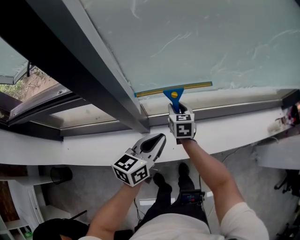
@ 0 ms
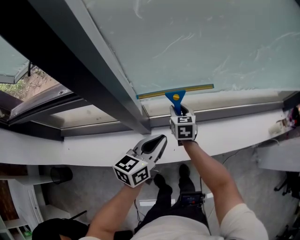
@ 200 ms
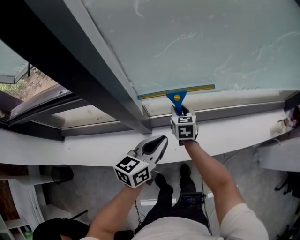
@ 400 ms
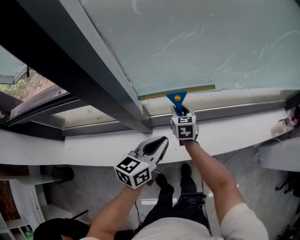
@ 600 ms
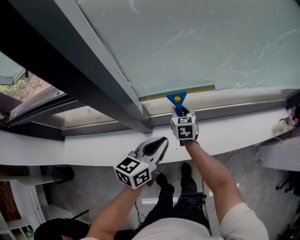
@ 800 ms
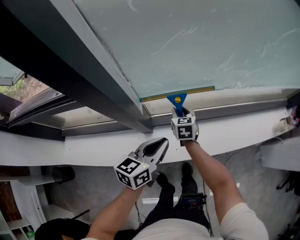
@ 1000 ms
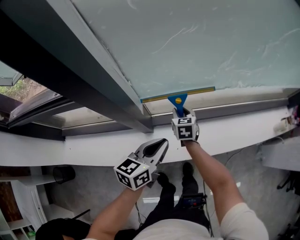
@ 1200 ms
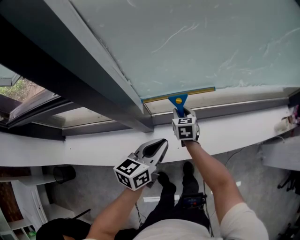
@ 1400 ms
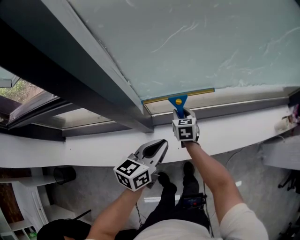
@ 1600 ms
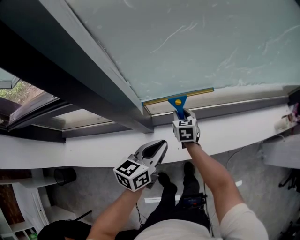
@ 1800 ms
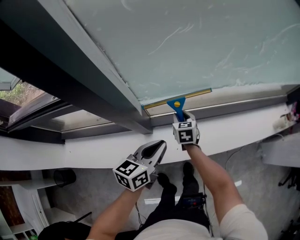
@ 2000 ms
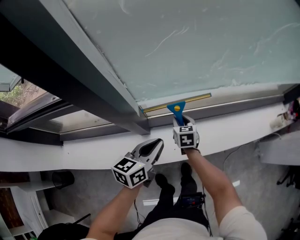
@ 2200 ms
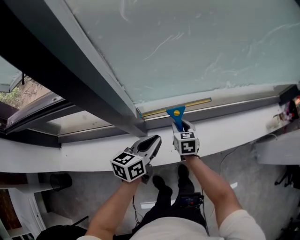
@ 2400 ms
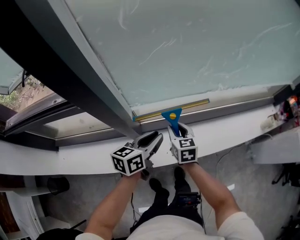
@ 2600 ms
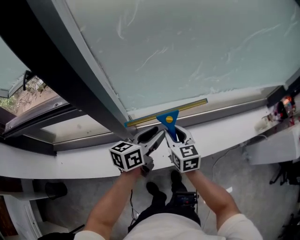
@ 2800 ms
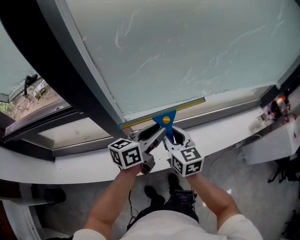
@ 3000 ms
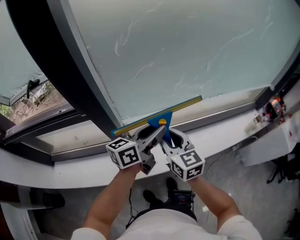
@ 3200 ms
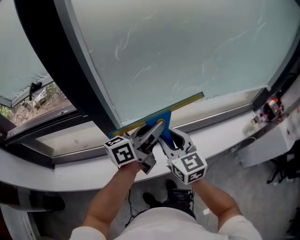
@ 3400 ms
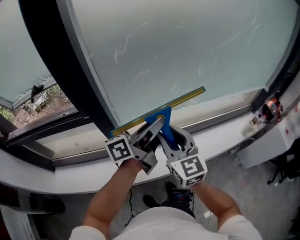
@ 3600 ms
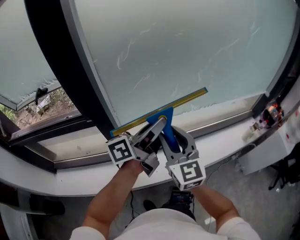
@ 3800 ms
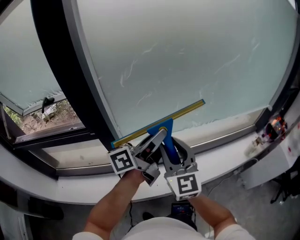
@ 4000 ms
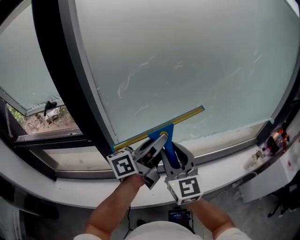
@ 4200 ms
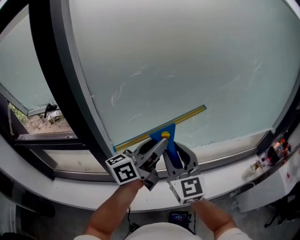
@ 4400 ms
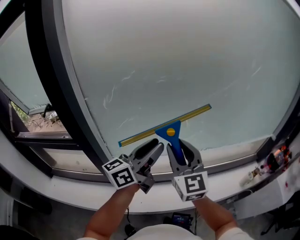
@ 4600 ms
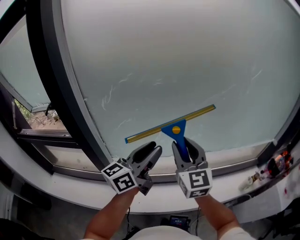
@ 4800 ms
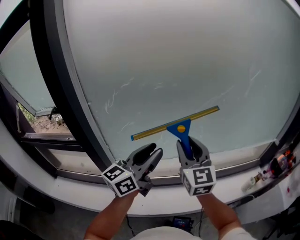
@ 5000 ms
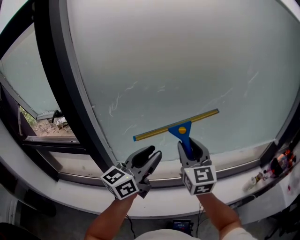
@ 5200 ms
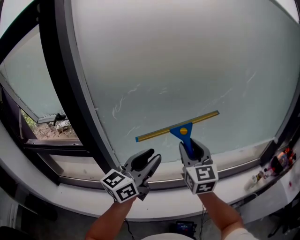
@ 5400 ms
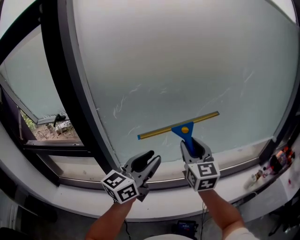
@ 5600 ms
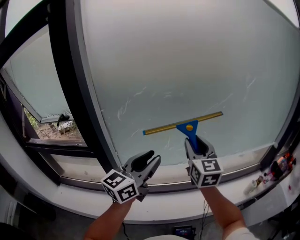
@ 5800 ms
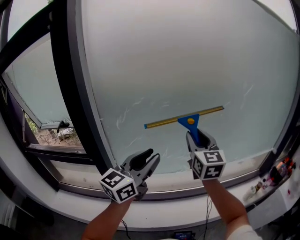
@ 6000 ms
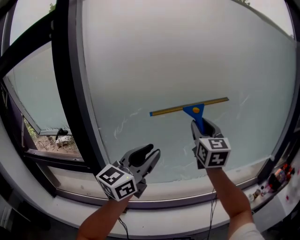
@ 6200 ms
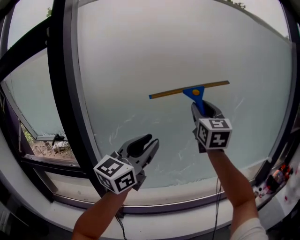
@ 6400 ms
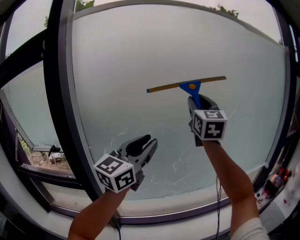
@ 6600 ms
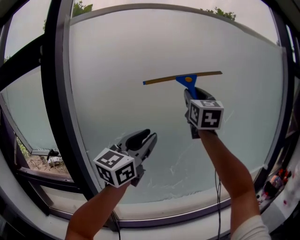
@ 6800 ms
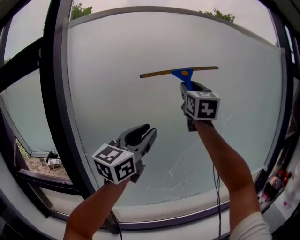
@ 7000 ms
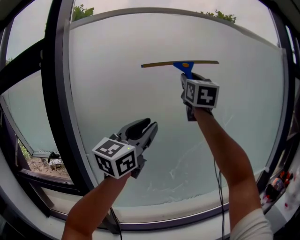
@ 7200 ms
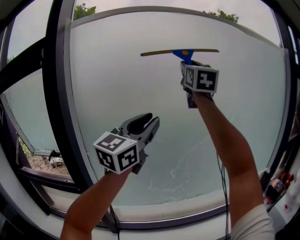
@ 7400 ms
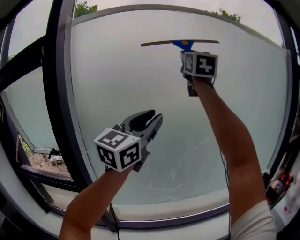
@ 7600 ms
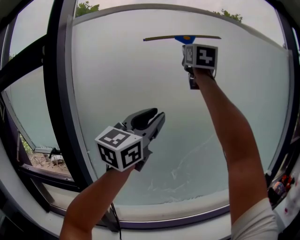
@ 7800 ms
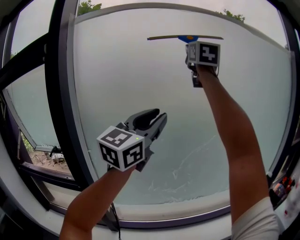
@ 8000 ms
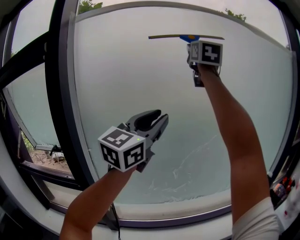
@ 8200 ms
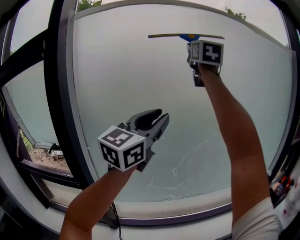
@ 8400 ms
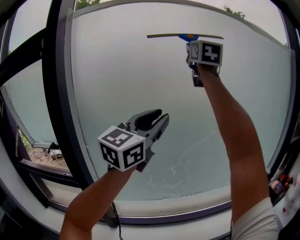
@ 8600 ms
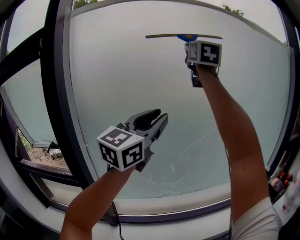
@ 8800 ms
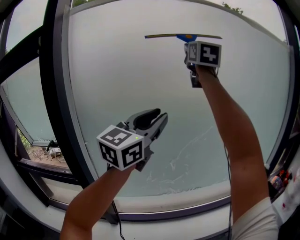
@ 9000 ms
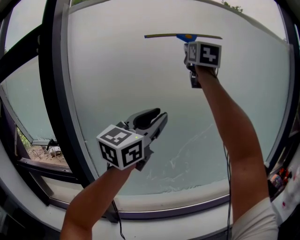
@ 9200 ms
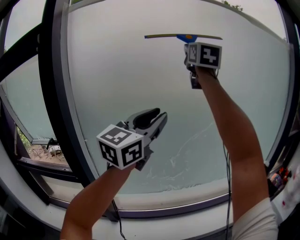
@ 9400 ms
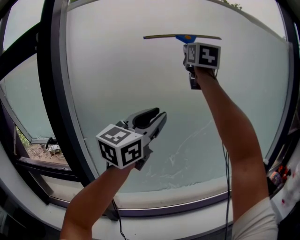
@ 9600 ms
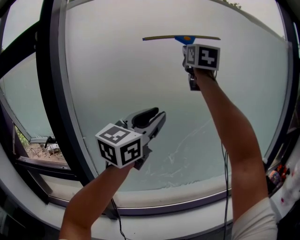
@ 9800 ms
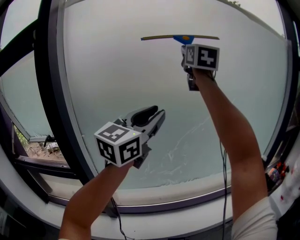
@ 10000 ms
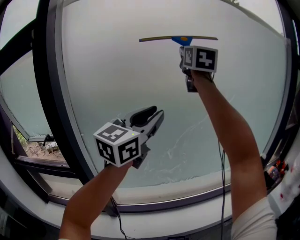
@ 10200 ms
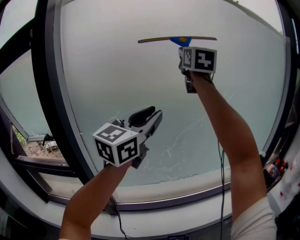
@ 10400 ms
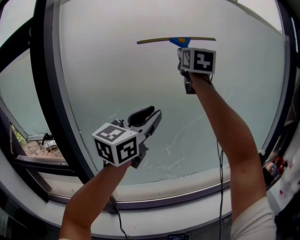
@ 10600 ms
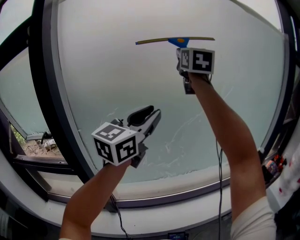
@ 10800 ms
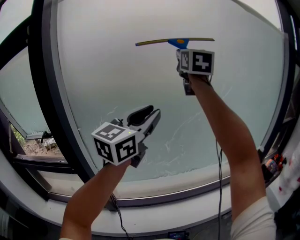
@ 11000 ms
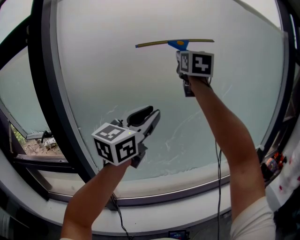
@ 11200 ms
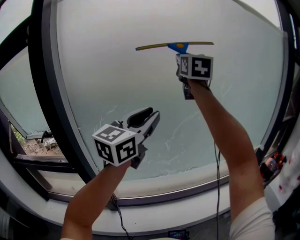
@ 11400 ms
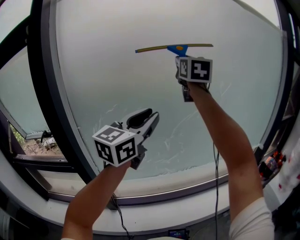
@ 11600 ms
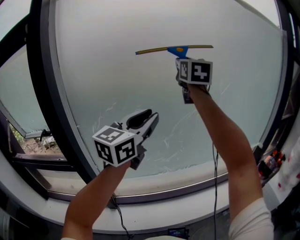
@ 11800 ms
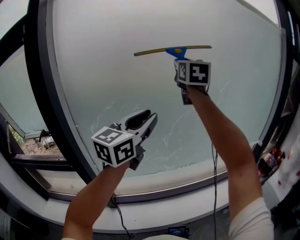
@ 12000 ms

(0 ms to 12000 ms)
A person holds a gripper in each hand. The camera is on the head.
0 ms - 1600 ms: The right gripper shifts about 10 cm downward.
1600 ms - 3000 ms: The left gripper travels upward and to the right by about 15 cm, and opens its fingers, while the right gripper is displaced upward and backward by roughly 30 cm, and turns by about 20 degrees.
3000 ms - 4400 ms: Both grippers travel together upward and to the right, approximately 25 cm. The left gripper rotates about 30 degrees. Meanwhile the right gripper swivels some 30 degrees.
4400 ms - 6000 ms: The left gripper heads upward, covering approximately 5 cm, and changes its angle by some 30 degrees. Meanwhile the right gripper heads to the right, upward and forward, covering some 20 cm.
6000 ms - 7600 ms: The right gripper is displaced upward by roughly 40 cm, and swivels about 20 degrees, while the left gripper is displaced upward by about 25 cm, and turns by roughly 20 degrees.
7600 ms - 9000 ms: There are only small adjustments of the grippers.
9000 ms - 10400 ms: The right gripper moves downward, some 10 cm.
10400 ms - 12000 ms: The right gripper moves downward, some 10 cm, while the left gripper heads downward, covering roughly 5 cm.

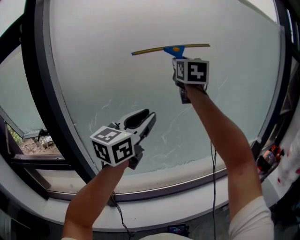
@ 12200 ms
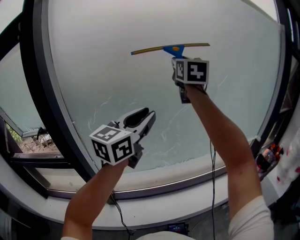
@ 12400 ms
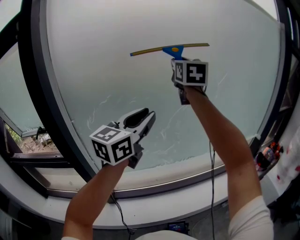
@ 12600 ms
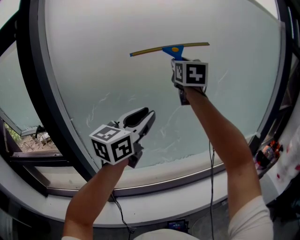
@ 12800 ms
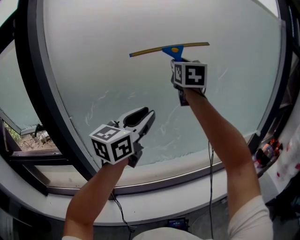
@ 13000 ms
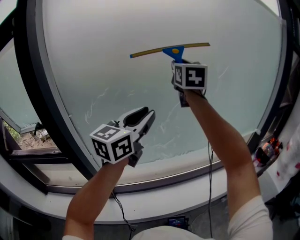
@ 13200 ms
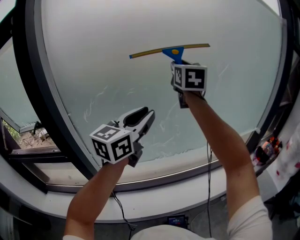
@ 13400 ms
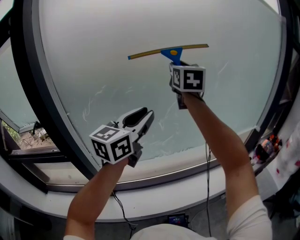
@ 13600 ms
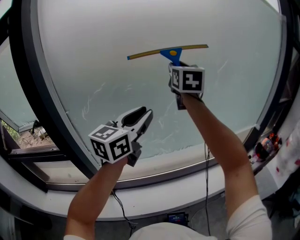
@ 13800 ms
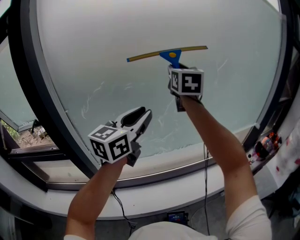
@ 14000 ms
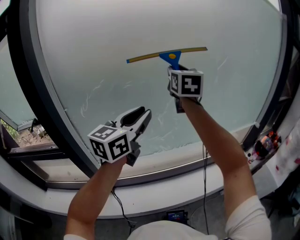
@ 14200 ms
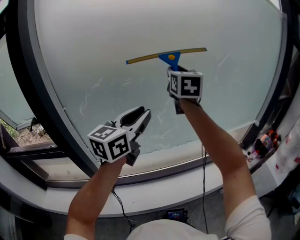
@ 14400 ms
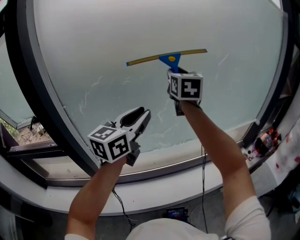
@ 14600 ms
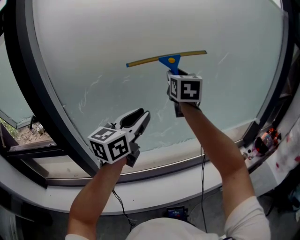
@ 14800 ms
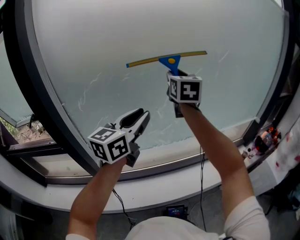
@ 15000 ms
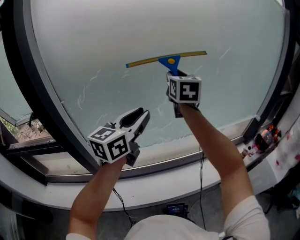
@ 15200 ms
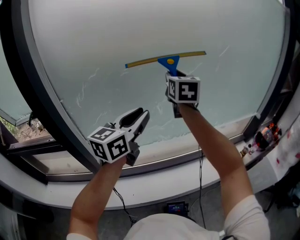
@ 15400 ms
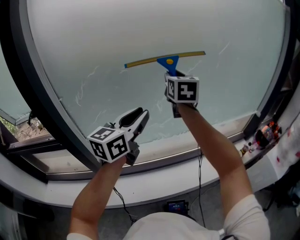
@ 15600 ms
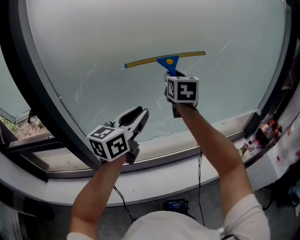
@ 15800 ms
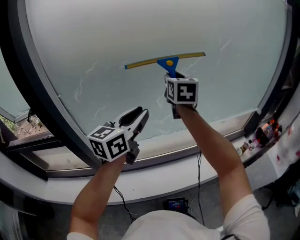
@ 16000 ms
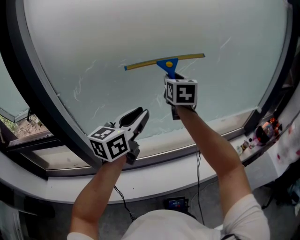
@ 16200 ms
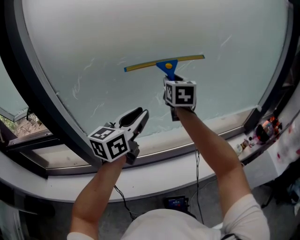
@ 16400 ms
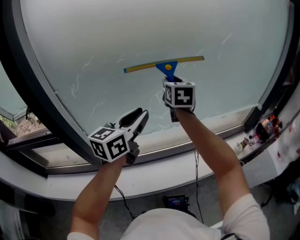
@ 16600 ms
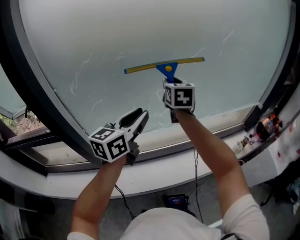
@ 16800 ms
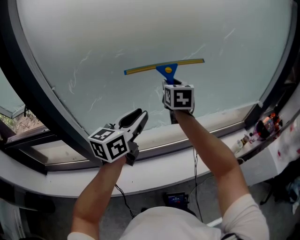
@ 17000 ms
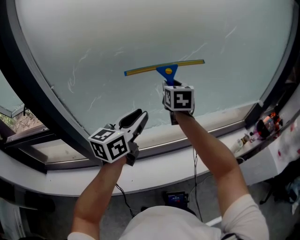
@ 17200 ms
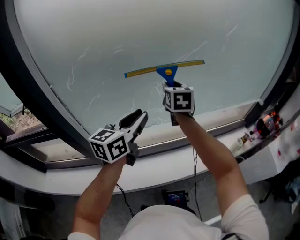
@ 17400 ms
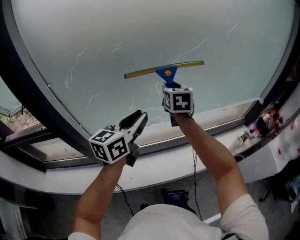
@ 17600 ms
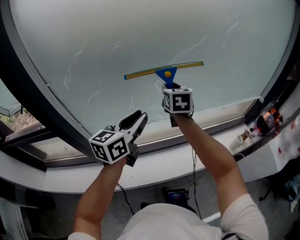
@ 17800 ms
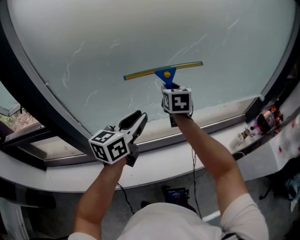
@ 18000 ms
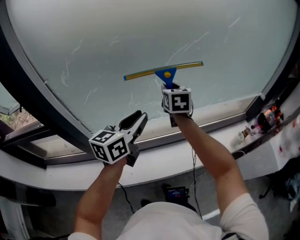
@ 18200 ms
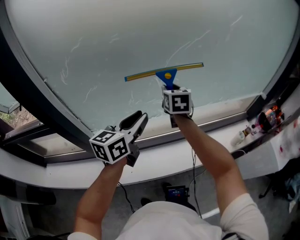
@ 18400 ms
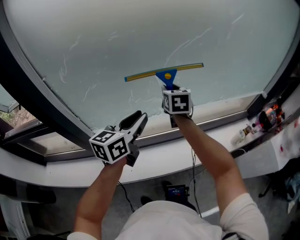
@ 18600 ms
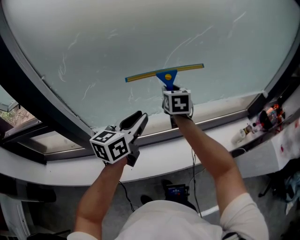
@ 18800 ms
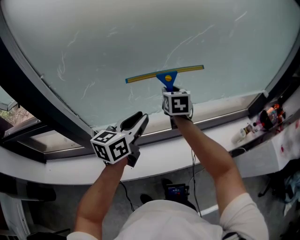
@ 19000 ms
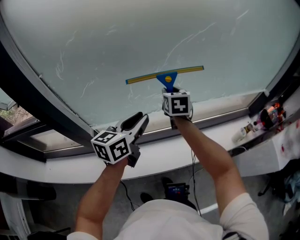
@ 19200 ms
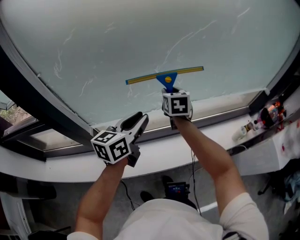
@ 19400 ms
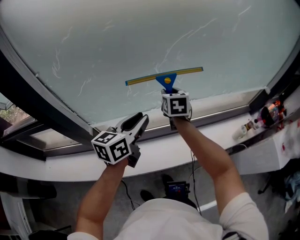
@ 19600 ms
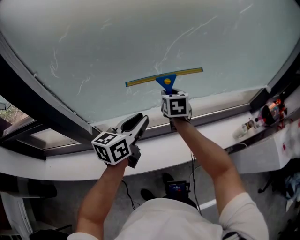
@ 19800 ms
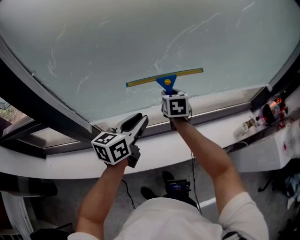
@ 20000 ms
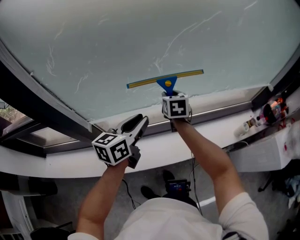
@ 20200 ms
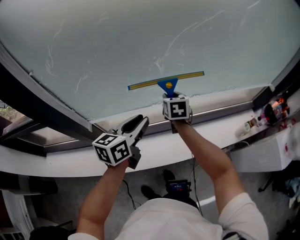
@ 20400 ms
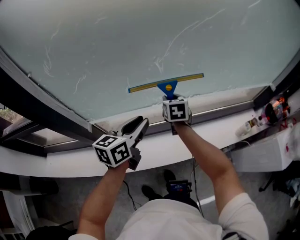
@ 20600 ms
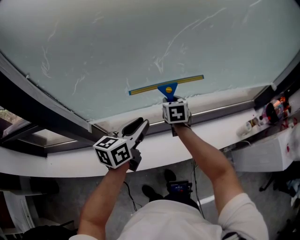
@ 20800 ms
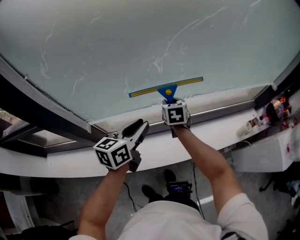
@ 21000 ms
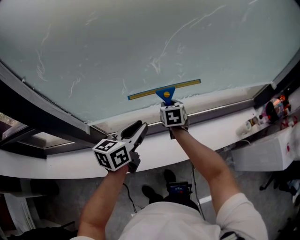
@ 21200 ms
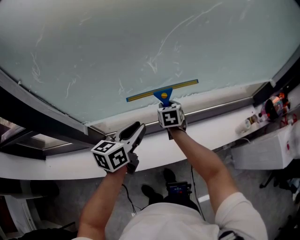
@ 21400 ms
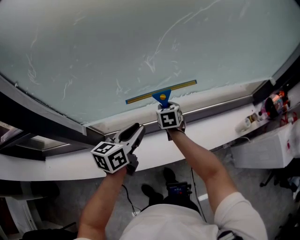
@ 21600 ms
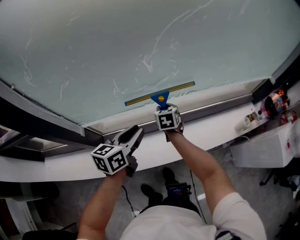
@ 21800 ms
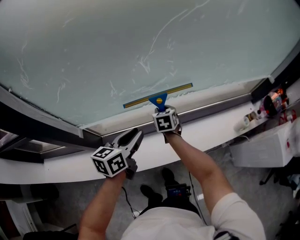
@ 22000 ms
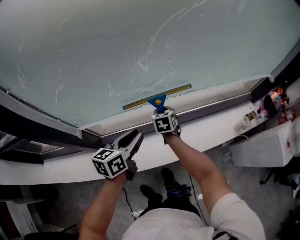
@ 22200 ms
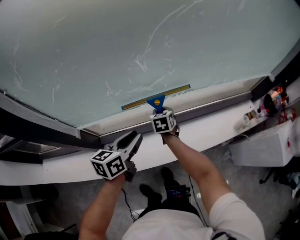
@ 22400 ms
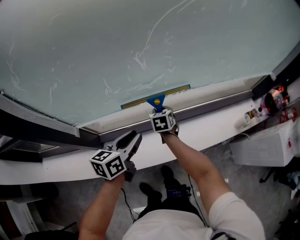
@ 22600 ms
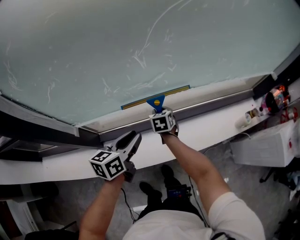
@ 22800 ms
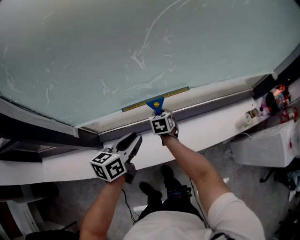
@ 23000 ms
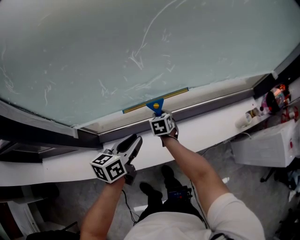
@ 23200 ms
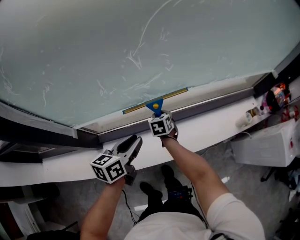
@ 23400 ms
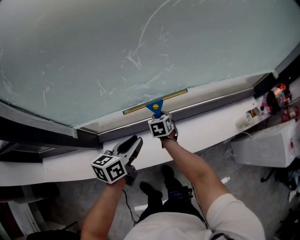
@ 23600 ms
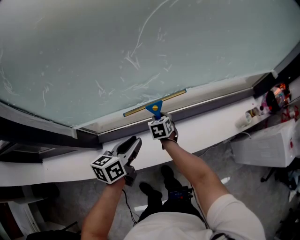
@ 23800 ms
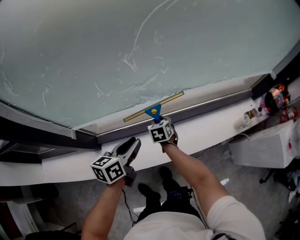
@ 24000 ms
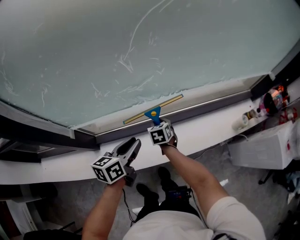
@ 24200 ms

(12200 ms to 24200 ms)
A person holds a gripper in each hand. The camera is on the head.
12200 ms - 13800 ms: The left gripper shifts some 5 cm downward; the right gripper goes approximately 10 cm downward.
13800 ms - 15200 ms: The left gripper goes approximately 5 cm downward, while the right gripper travels downward by some 10 cm.
15200 ms - 16600 ms: The left gripper goes some 5 cm downward. The right gripper moves downward, some 10 cm.
16600 ms - 18200 ms: The left gripper shifts about 10 cm downward. The right gripper travels downward by approximately 10 cm.
18200 ms - 19800 ms: The right gripper moves downward, about 10 cm, while the left gripper is displaced downward by approximately 10 cm.
19800 ms - 21200 ms: The left gripper moves downward, roughly 5 cm, while the right gripper is displaced downward by approximately 10 cm.
21200 ms - 22600 ms: The grippers both shift downward by about 10 cm.
22600 ms - 24200 ms: The right gripper changes place by some 5 cm.
